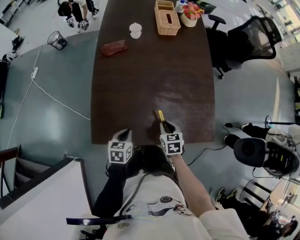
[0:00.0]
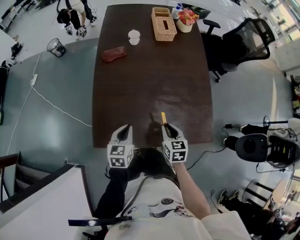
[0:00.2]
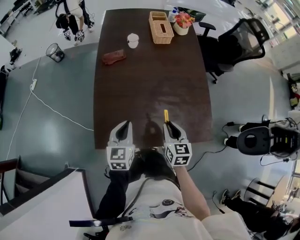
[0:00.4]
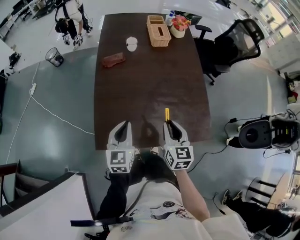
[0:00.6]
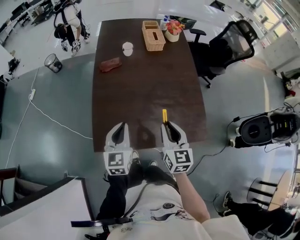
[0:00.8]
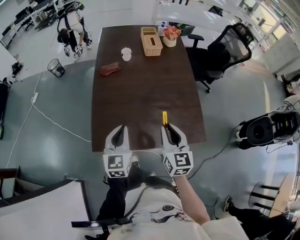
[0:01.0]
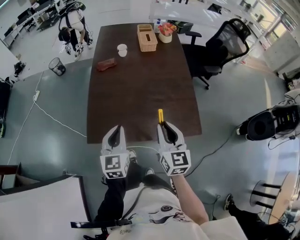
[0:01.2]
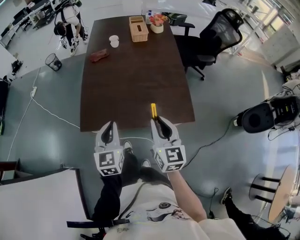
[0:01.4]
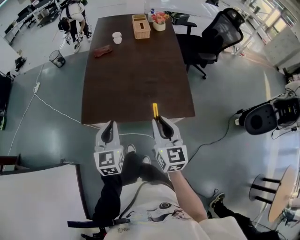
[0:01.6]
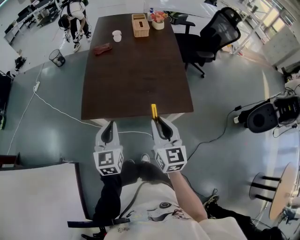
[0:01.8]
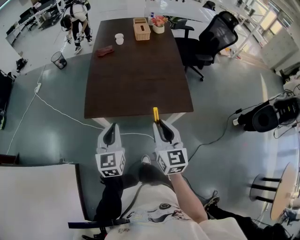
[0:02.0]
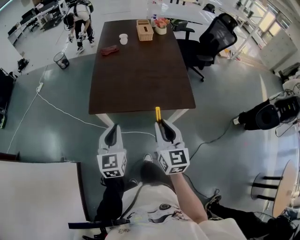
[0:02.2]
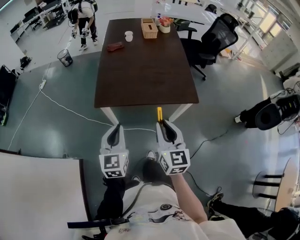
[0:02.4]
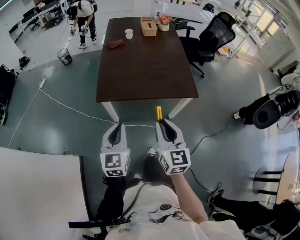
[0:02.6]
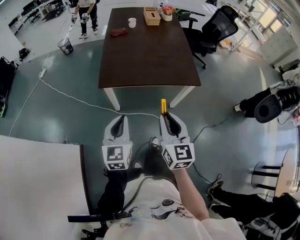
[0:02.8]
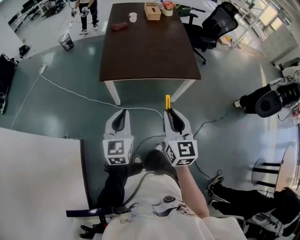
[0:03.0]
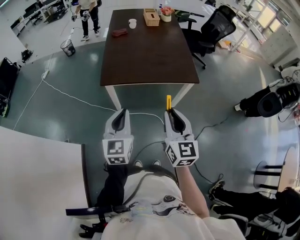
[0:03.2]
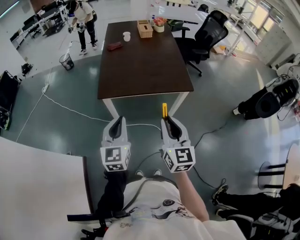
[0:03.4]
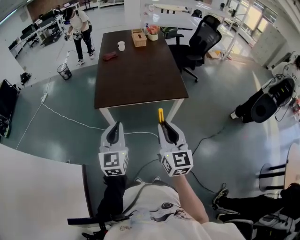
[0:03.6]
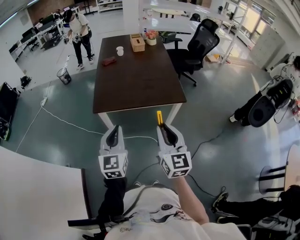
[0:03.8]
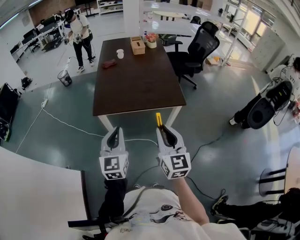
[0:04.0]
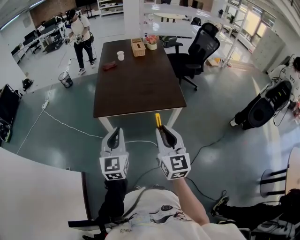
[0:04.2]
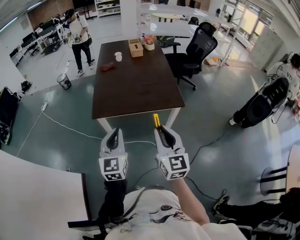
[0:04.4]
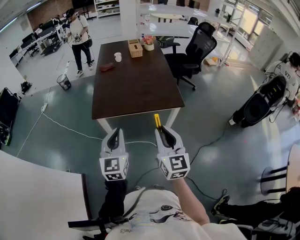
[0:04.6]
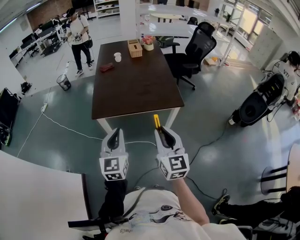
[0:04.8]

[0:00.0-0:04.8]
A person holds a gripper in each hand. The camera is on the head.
0.0 to 1.6 s: Both grippers travel together upward and backward, about 25 cm. The left gripper tilts its fingers approximately 30 degrees upward. The right gripper angles its fingers upward, by about 40 degrees.
1.6 to 3.2 s: The two grippers go some 20 cm backward.
3.2 to 4.8 s: The left gripper shifts some 5 cm to the right; the right gripper moves about 5 cm.

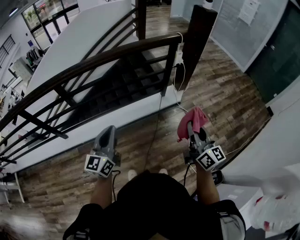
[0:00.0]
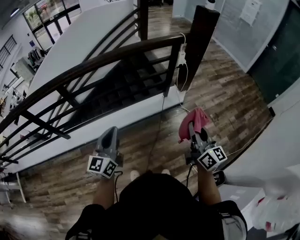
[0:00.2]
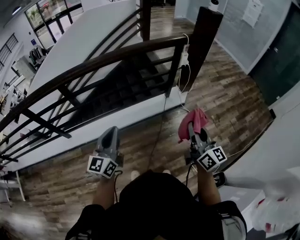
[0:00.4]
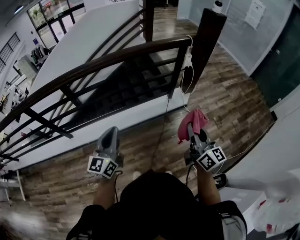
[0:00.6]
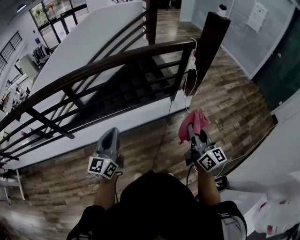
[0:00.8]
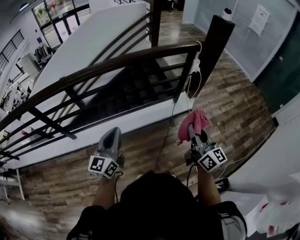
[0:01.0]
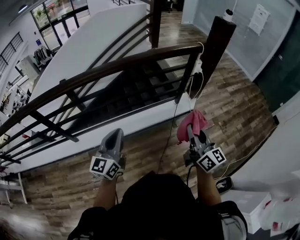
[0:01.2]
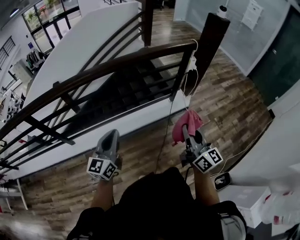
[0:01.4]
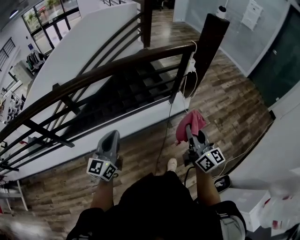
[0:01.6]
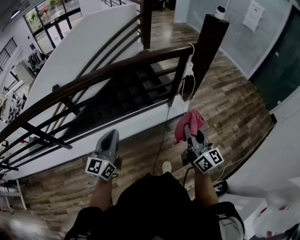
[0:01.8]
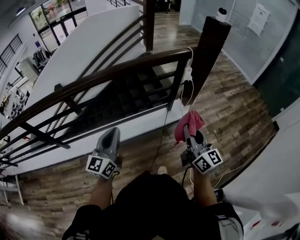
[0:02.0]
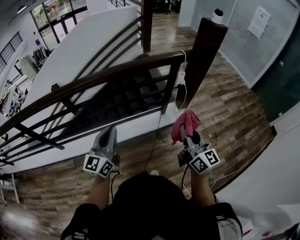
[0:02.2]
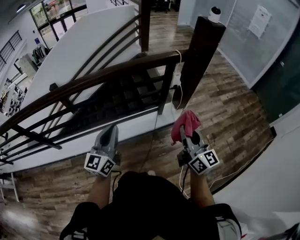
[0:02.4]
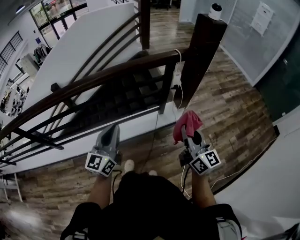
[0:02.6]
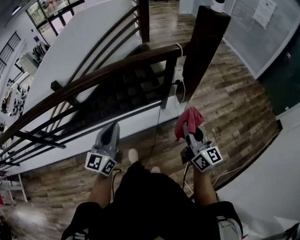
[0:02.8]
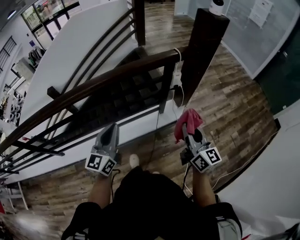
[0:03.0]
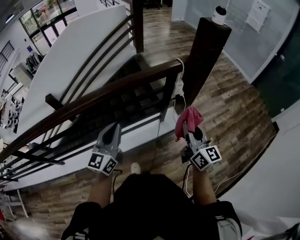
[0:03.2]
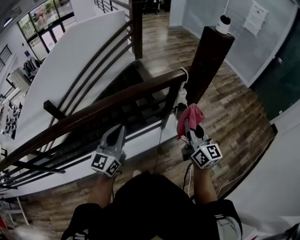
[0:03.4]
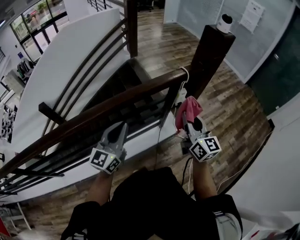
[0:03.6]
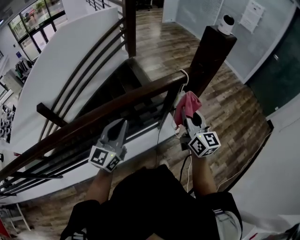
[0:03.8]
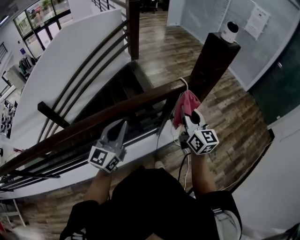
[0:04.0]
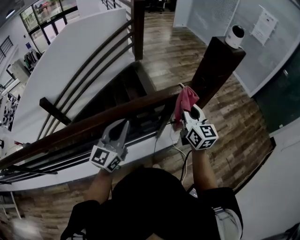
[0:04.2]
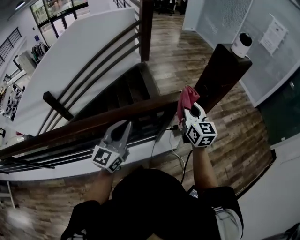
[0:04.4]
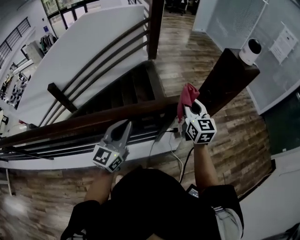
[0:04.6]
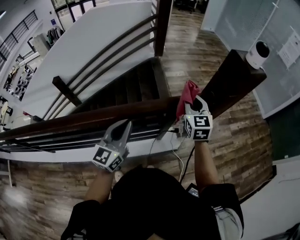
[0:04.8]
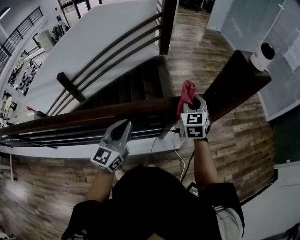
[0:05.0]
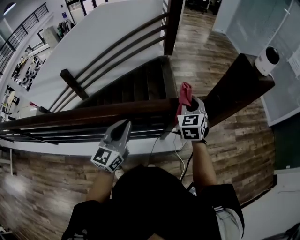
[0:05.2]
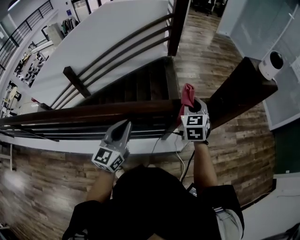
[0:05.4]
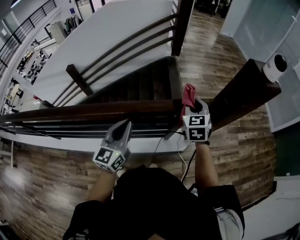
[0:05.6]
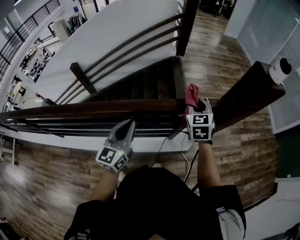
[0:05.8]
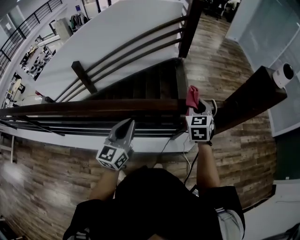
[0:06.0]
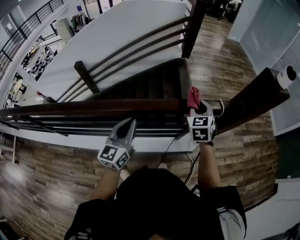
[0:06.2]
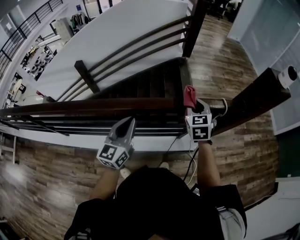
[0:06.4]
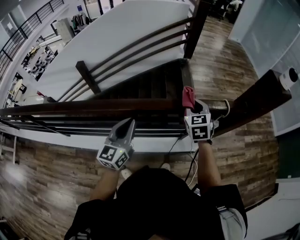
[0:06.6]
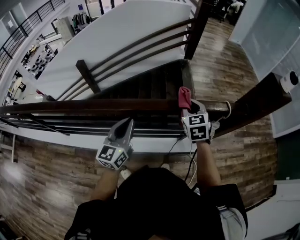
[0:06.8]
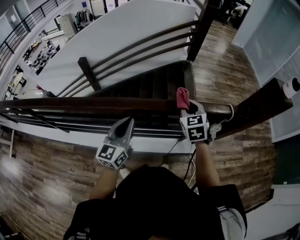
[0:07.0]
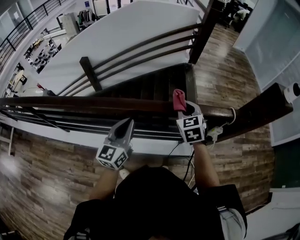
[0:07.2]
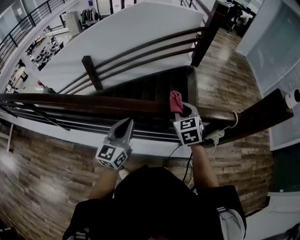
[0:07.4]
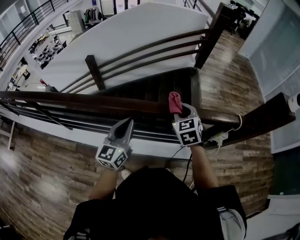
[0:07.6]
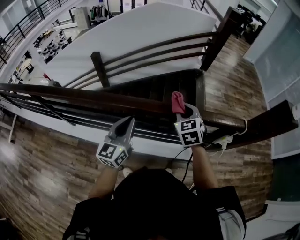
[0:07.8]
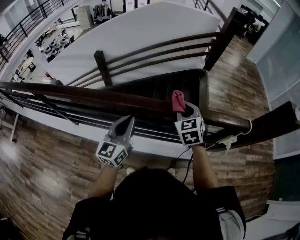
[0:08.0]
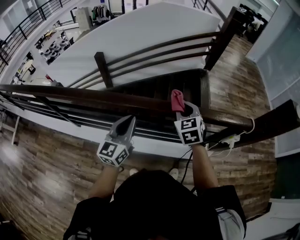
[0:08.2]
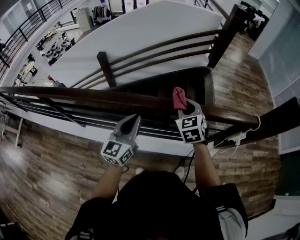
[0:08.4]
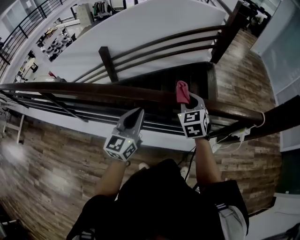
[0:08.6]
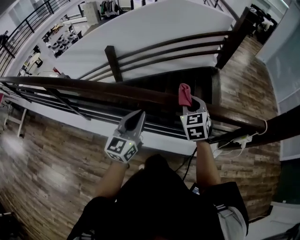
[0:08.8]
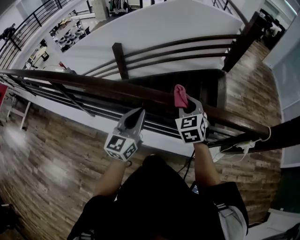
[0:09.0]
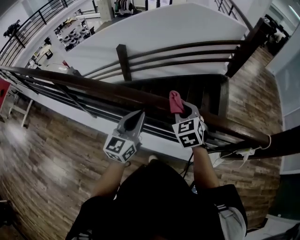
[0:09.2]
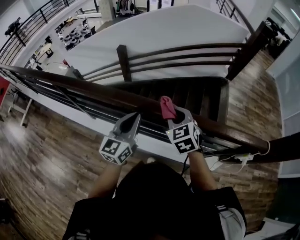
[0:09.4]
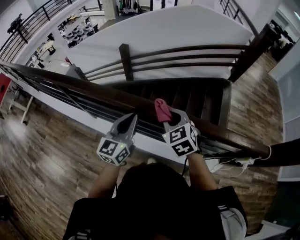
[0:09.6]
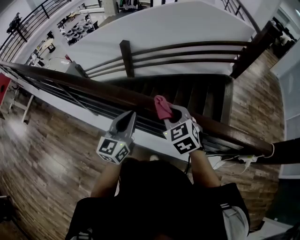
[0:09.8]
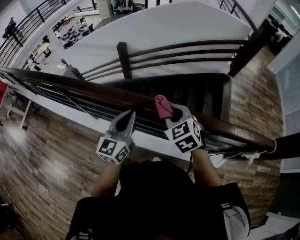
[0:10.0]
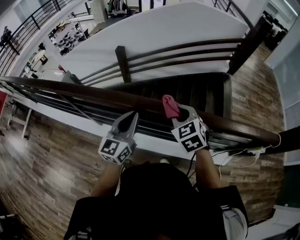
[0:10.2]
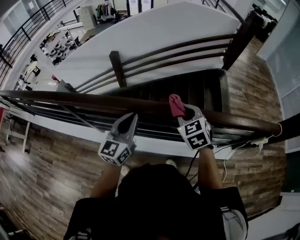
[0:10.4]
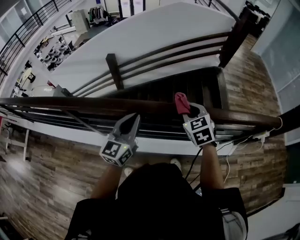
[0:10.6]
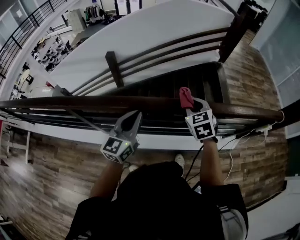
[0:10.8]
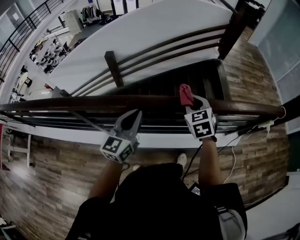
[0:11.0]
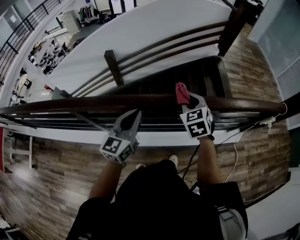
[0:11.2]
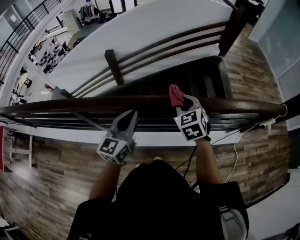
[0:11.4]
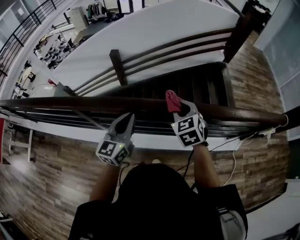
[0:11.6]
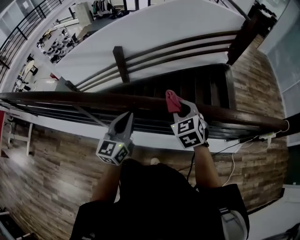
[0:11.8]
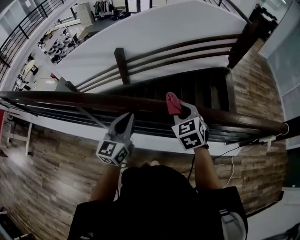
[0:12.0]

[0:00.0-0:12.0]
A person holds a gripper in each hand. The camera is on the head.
0.0 to 1.6 s: The left gripper travels to the left by about 5 cm. The right gripper travels to the left and forward by roughly 10 cm.
1.6 to 3.0 s: The left gripper shifts approximately 25 cm to the right and forward. Meanwhile the right gripper travels forward and to the right by about 25 cm.
3.0 to 4.4 s: The two grippers go about 25 cm forward.
4.4 to 6.0 s: The right gripper moves to the left and downward, roughly 10 cm, and rotates some 30 degrees; the left gripper travels to the left by roughly 10 cm, and changes its angle by about 20 degrees.
6.0 to 7.6 s: The left gripper travels to the left by some 15 cm, while the right gripper shifts about 20 cm to the left, and rotates approximately 20 degrees.
7.6 to 9.0 s: The two grippers go approximately 15 cm to the left.
9.0 to 10.4 s: The two grippers go roughly 15 cm to the left.
10.4 to 12.0 s: The grippers both shift to the left by about 15 cm.

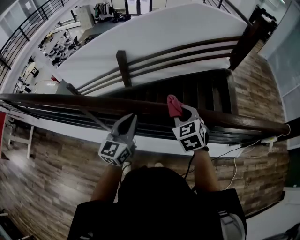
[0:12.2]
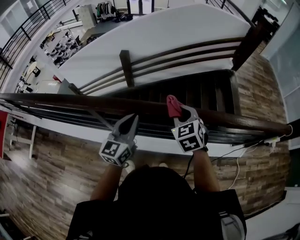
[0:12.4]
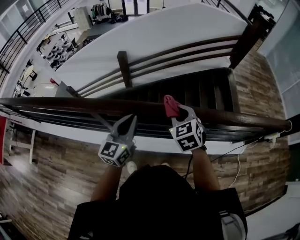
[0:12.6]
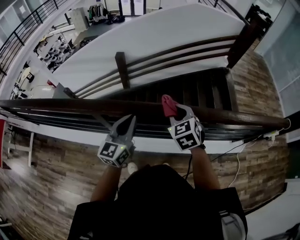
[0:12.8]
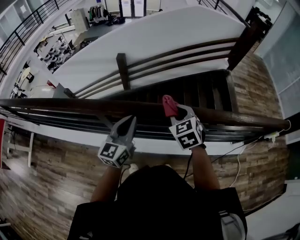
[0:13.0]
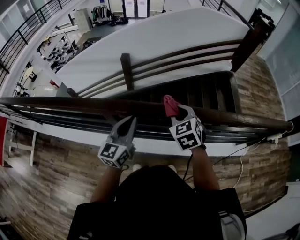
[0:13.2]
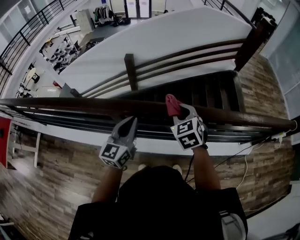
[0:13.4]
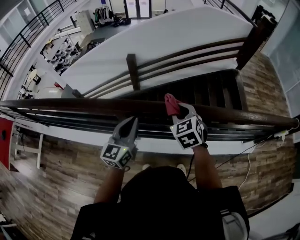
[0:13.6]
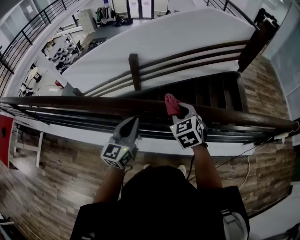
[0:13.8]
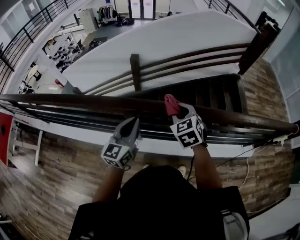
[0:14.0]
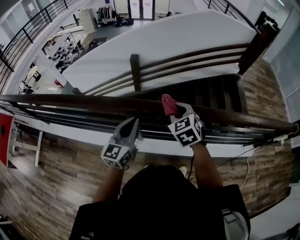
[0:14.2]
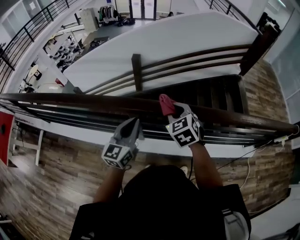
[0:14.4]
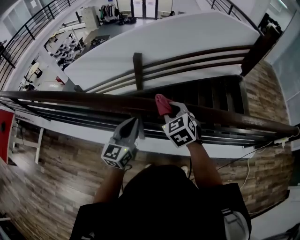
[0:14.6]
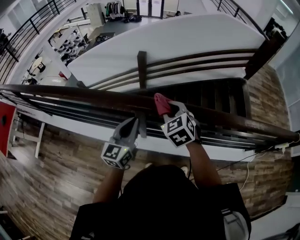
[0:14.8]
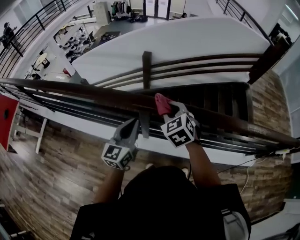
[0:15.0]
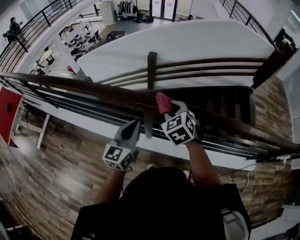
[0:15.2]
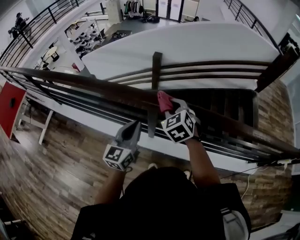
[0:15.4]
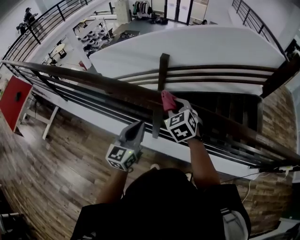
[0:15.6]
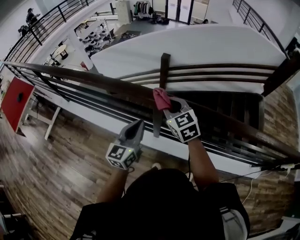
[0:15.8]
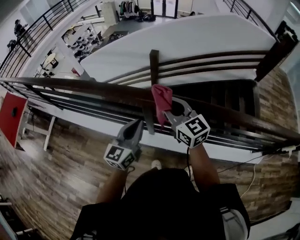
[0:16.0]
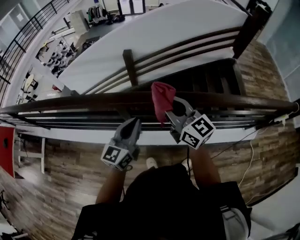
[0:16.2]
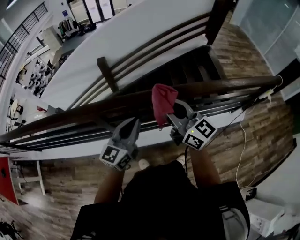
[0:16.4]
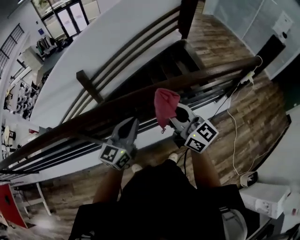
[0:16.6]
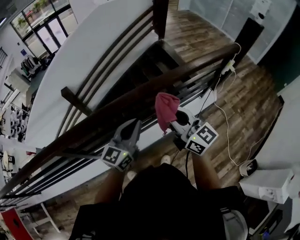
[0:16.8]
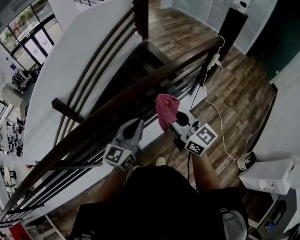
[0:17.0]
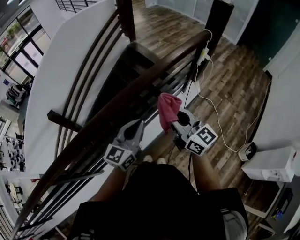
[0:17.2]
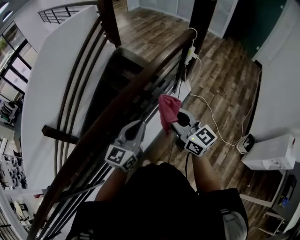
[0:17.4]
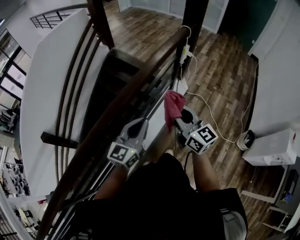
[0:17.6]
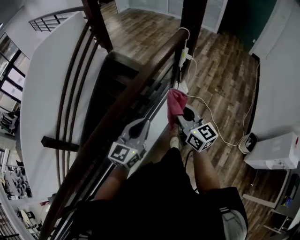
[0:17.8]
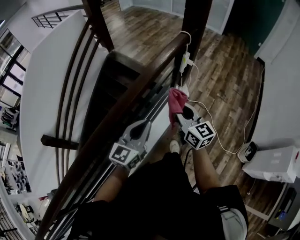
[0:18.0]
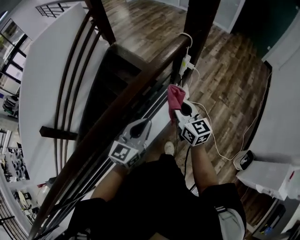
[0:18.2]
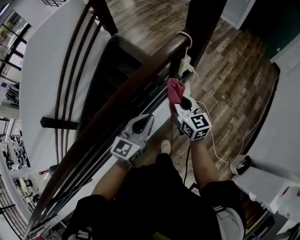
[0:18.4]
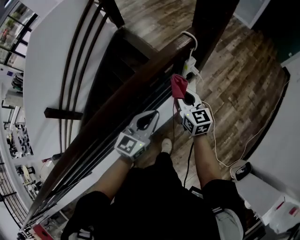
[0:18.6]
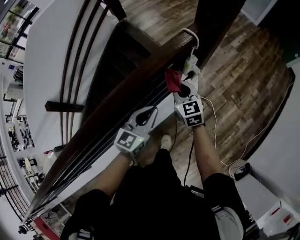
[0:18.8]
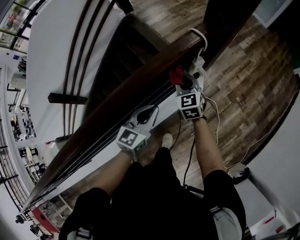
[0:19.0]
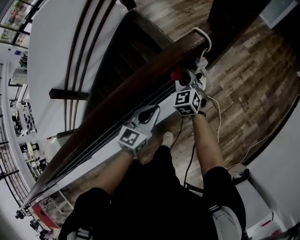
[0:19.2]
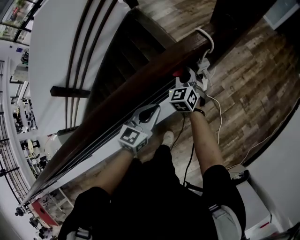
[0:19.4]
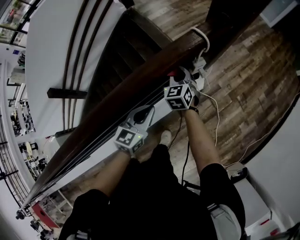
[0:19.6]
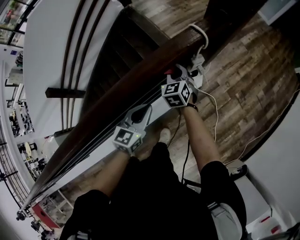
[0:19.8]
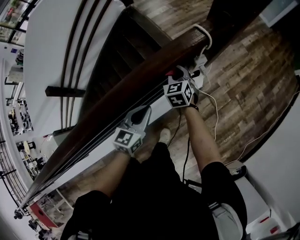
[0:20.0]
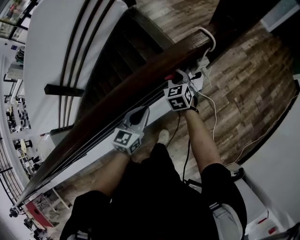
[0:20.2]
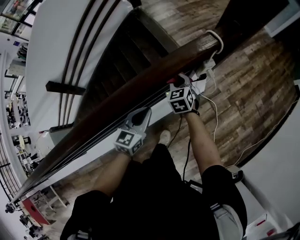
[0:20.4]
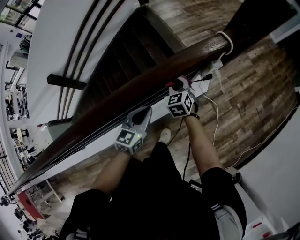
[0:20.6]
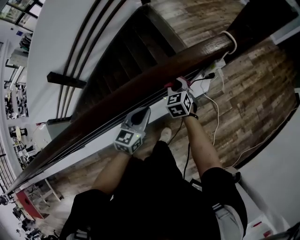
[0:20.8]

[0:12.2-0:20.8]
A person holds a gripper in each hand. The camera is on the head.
12.2 to 13.6 s: The two grippers go approximately 15 cm to the left.
13.6 to 15.0 s: The left gripper travels to the left by roughly 10 cm. Meanwhile the right gripper is displaced to the left by approximately 15 cm.
15.0 to 16.6 s: The right gripper changes place by approximately 30 cm, and tilts its fingers roughly 50 degrees upward. Meanwhile the left gripper shifts by roughly 25 cm, and changes its angle by some 40 degrees.
16.6 to 18.0 s: The pair of grippers is taken about 50 cm. The right gripper rotates approximately 50 degrees. The left gripper turns by some 40 degrees.
18.0 to 19.4 s: The right gripper moves forward and downward, roughly 35 cm, and swivels roughly 50 degrees. Meanwhile the left gripper shifts some 25 cm forward, downward and to the right, and swivels approximately 20 degrees.
19.4 to 20.8 s: The left gripper moves to the left and backward, about 10 cm. Meanwhile the right gripper is displaced backward and to the left by some 15 cm.
